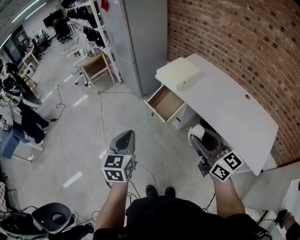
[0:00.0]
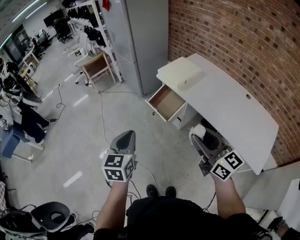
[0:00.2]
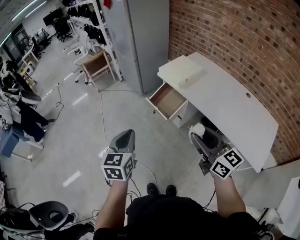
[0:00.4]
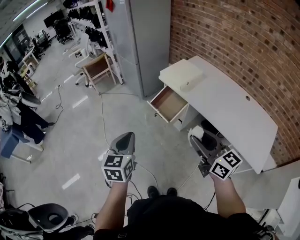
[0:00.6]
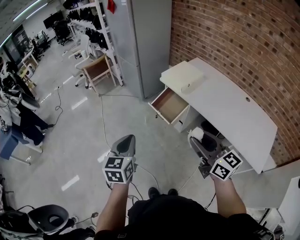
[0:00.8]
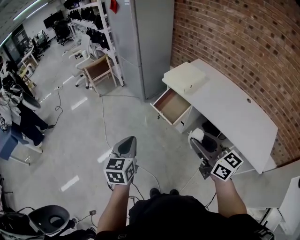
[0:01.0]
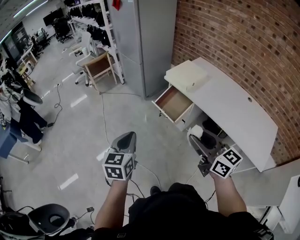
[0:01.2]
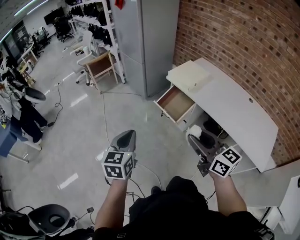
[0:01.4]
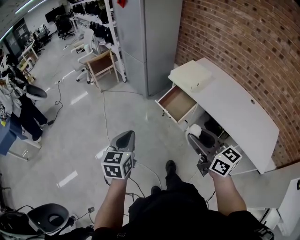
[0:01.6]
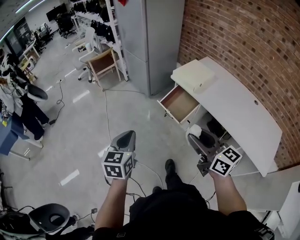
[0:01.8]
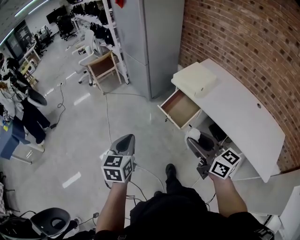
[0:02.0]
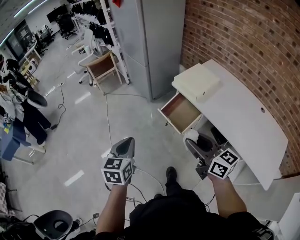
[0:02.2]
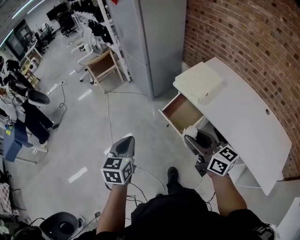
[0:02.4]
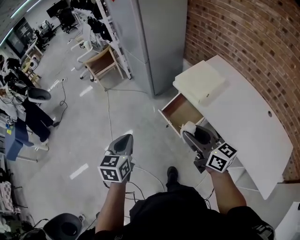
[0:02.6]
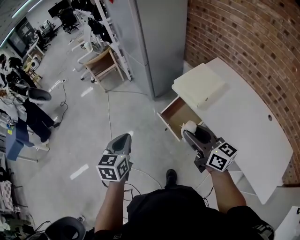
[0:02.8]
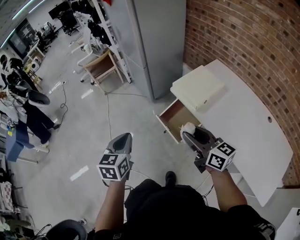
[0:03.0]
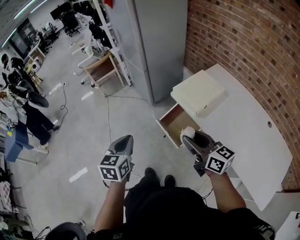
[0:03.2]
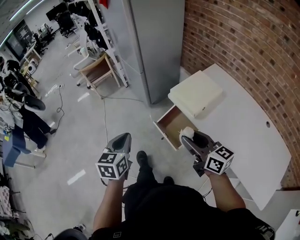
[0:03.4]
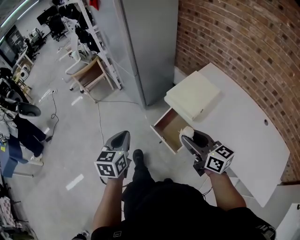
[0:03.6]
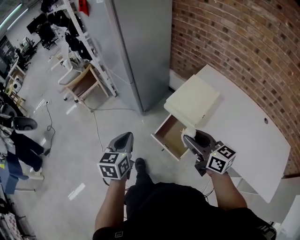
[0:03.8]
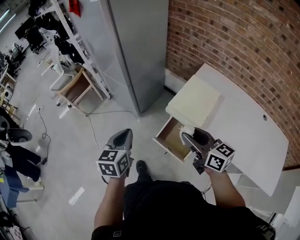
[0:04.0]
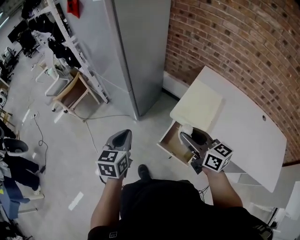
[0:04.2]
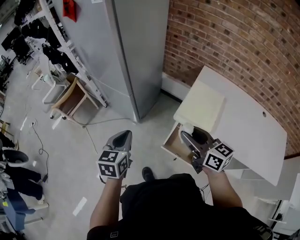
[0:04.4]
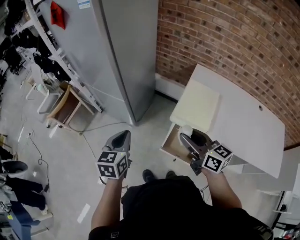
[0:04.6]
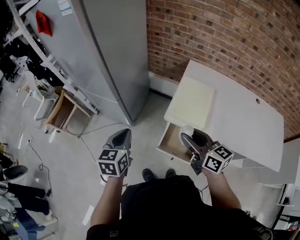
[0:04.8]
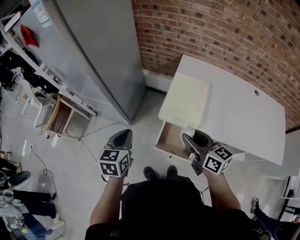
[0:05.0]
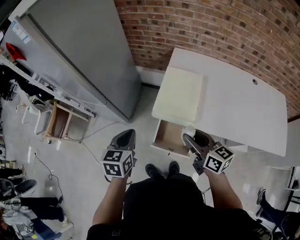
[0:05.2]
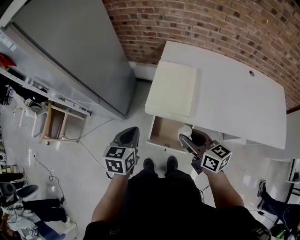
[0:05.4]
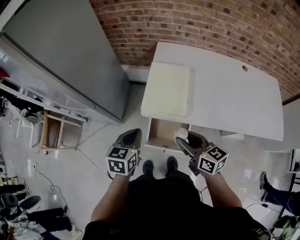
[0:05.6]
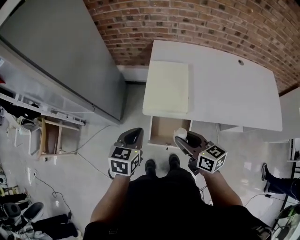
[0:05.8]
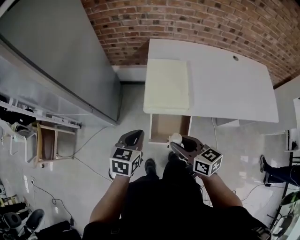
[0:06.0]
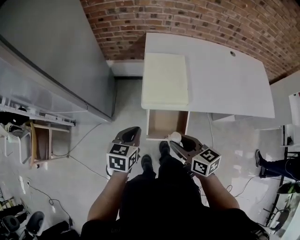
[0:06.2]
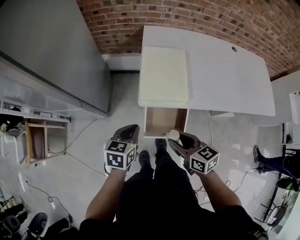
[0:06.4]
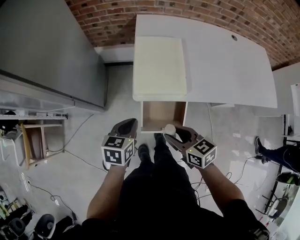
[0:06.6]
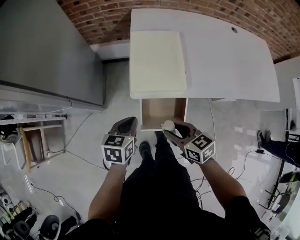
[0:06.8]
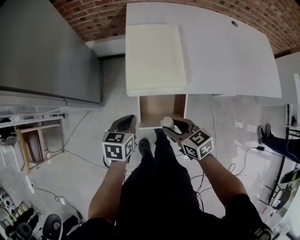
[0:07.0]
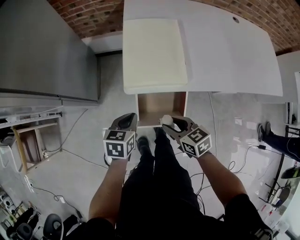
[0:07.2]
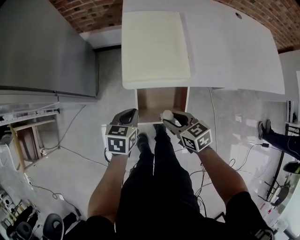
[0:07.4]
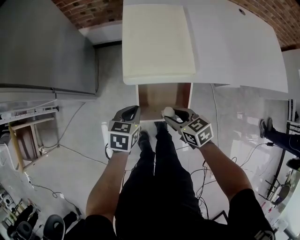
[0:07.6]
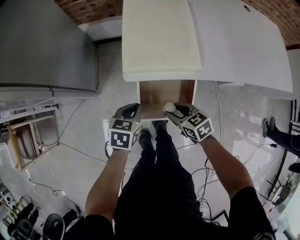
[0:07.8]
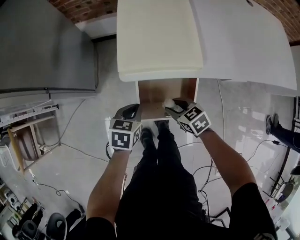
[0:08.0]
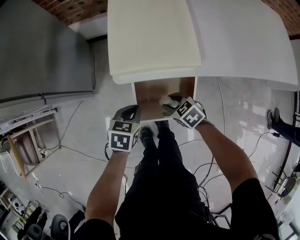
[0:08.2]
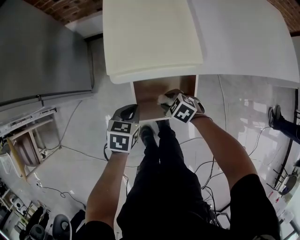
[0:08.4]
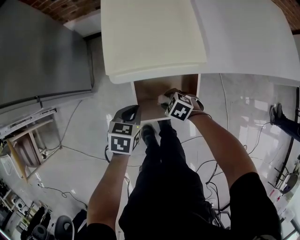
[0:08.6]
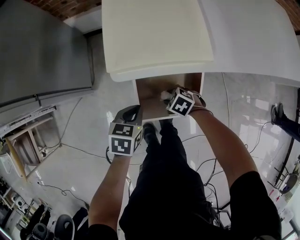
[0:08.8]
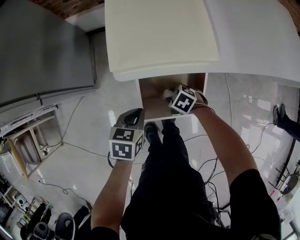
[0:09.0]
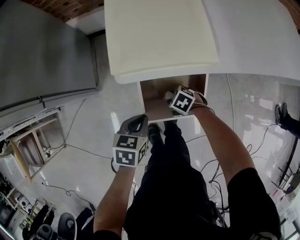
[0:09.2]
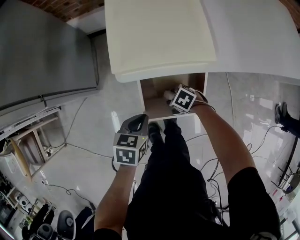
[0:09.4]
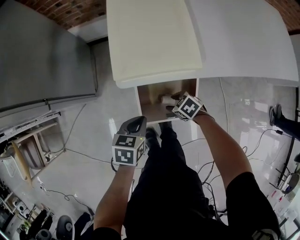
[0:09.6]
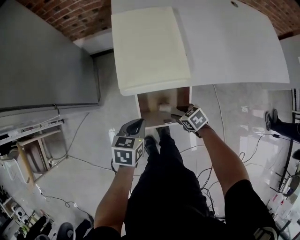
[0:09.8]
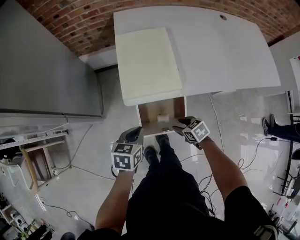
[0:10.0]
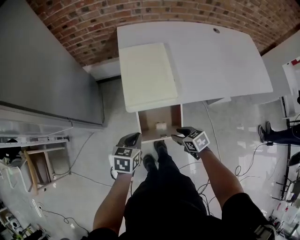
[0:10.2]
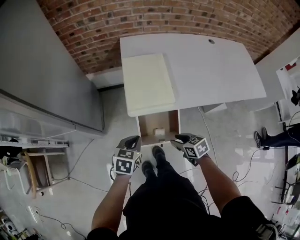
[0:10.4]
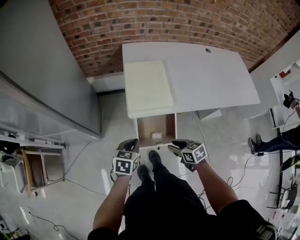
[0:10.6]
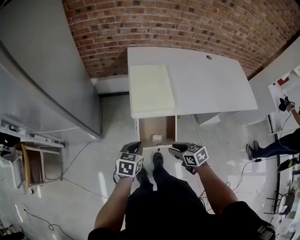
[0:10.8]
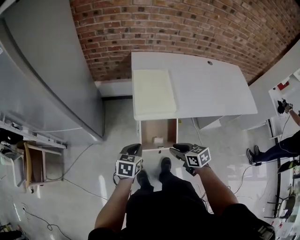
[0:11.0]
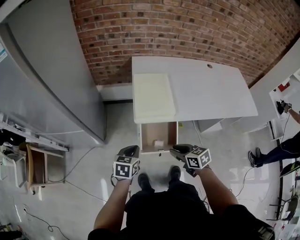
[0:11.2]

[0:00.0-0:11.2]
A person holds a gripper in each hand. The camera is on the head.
0:00.0 to 0:01.6: Both grippers travel together to the left, about 15 cm.
0:01.6 to 0:03.2: The grippers both shift forward and to the right by some 25 cm.
0:03.2 to 0:04.8: The right gripper ends up roughly 25 cm from where it was, and turns by approximately 30 degrees, while the left gripper changes place by about 35 cm, and rotates approximately 30 degrees.
0:04.8 to 0:06.4: The two grippers go approximately 15 cm downward. The left gripper turns by roughly 40 degrees, while the right gripper turns by approximately 20 degrees.
0:06.4 to 0:08.0: Both grippers travel together downward, roughly 25 cm. The right gripper changes its angle by about 20 degrees.
0:08.0 to 0:09.6: The right gripper travels downward by some 10 cm.
0:09.6 to 0:11.2: The right gripper goes about 35 cm upward, rotates roughly 30 degrees, and closes its fingers; the left gripper is displaced upward by approximately 20 cm.

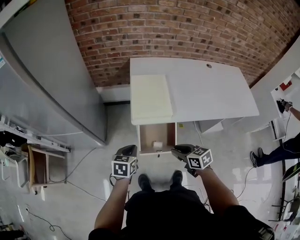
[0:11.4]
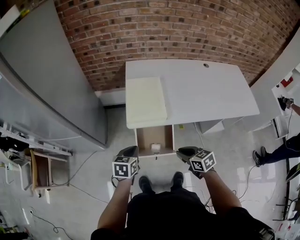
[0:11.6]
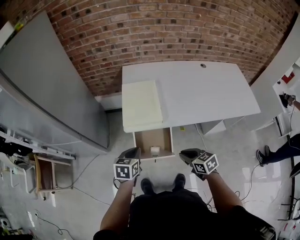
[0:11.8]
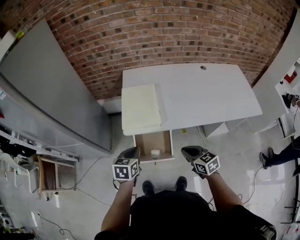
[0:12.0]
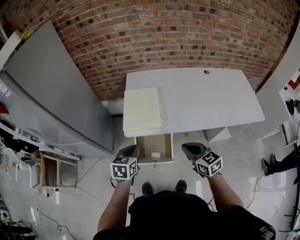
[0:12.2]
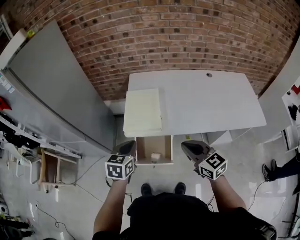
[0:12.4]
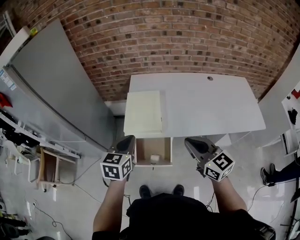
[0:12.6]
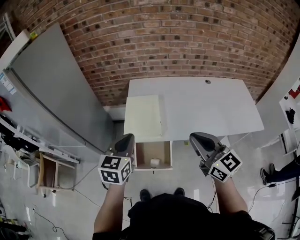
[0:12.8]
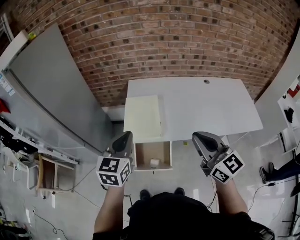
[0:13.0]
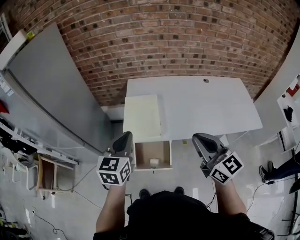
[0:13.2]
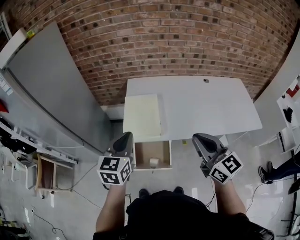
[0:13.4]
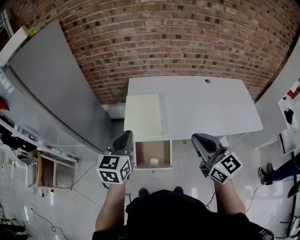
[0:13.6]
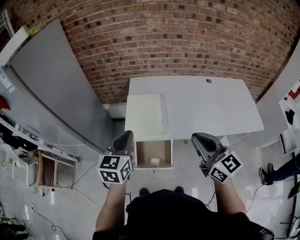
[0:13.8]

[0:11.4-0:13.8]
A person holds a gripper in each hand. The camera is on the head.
0:11.4 to 0:12.6: The two grippers go approximately 25 cm upward and to the right. The right gripper changes its angle by some 40 degrees, and closes its fingers.
0:12.6 to 0:13.8: Both grippers travel together upward, approximately 5 cm.

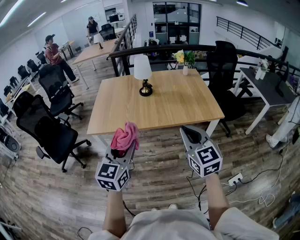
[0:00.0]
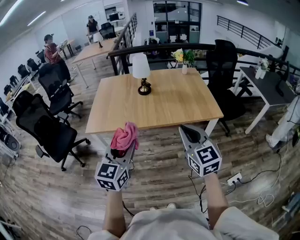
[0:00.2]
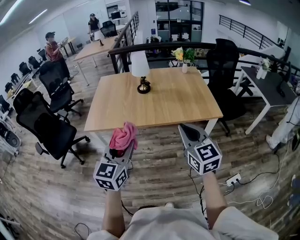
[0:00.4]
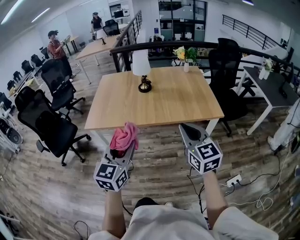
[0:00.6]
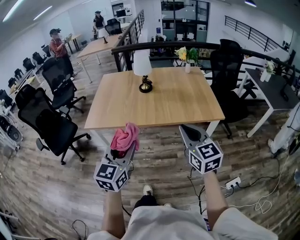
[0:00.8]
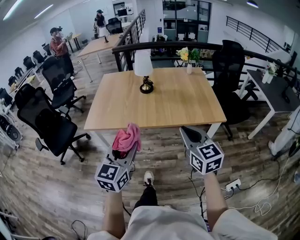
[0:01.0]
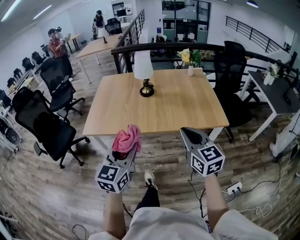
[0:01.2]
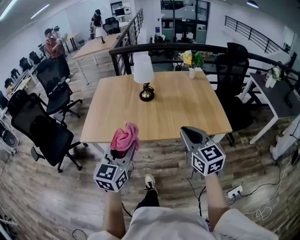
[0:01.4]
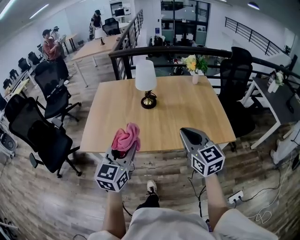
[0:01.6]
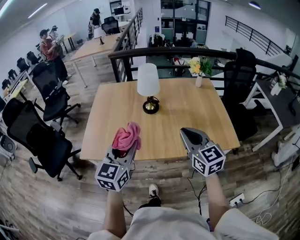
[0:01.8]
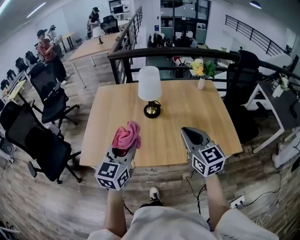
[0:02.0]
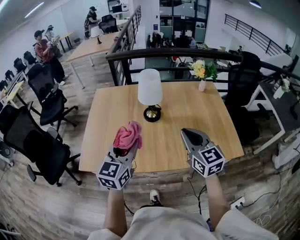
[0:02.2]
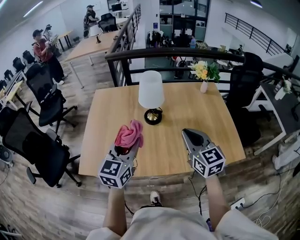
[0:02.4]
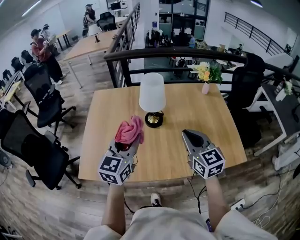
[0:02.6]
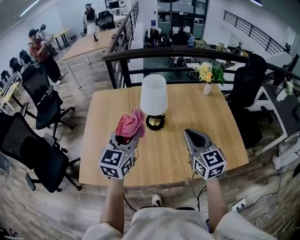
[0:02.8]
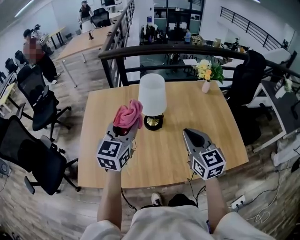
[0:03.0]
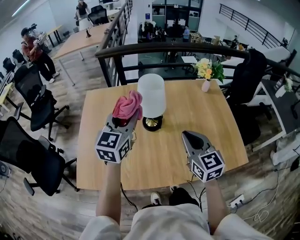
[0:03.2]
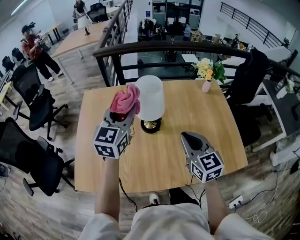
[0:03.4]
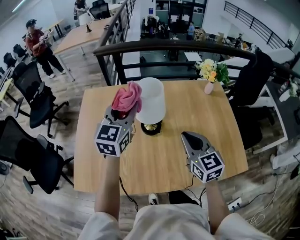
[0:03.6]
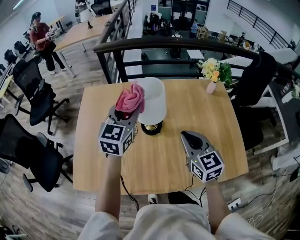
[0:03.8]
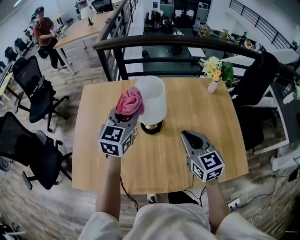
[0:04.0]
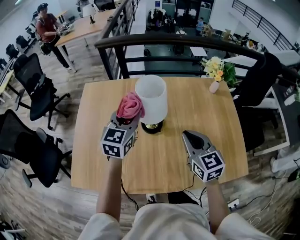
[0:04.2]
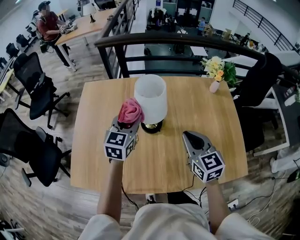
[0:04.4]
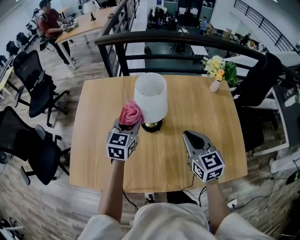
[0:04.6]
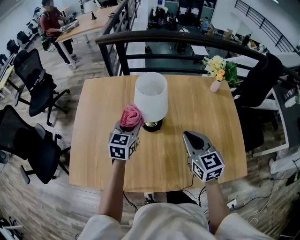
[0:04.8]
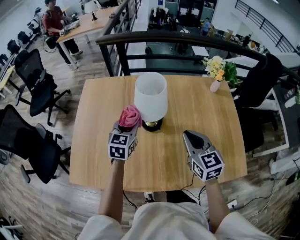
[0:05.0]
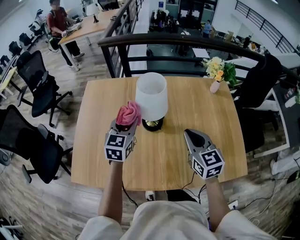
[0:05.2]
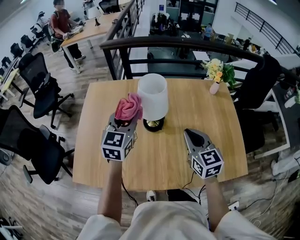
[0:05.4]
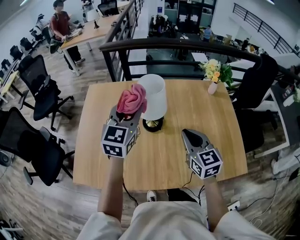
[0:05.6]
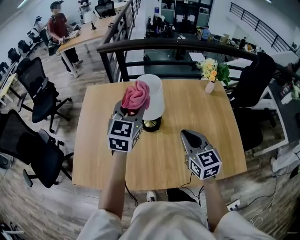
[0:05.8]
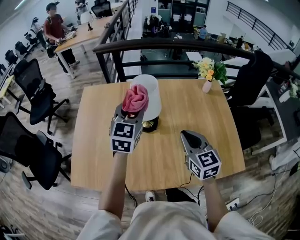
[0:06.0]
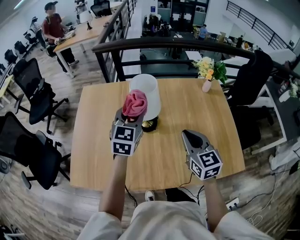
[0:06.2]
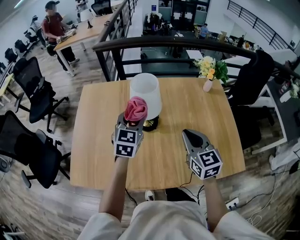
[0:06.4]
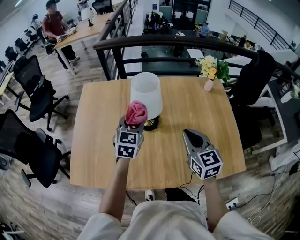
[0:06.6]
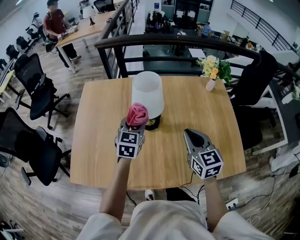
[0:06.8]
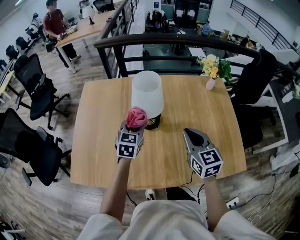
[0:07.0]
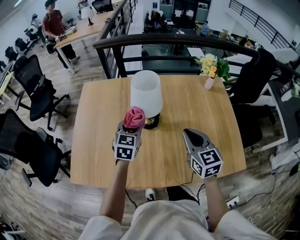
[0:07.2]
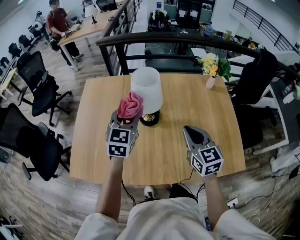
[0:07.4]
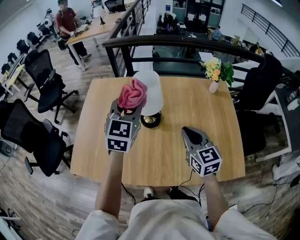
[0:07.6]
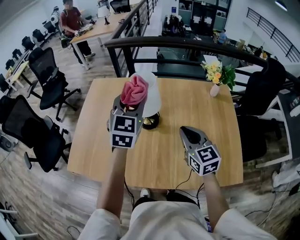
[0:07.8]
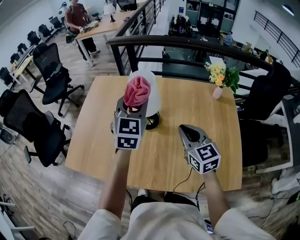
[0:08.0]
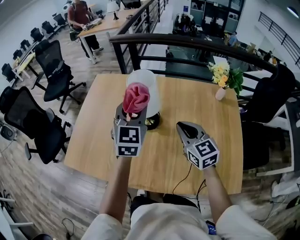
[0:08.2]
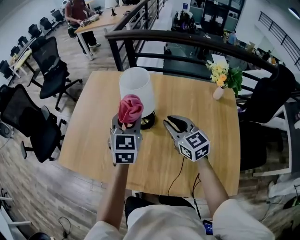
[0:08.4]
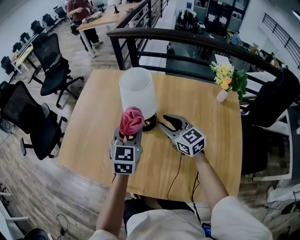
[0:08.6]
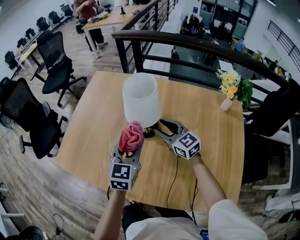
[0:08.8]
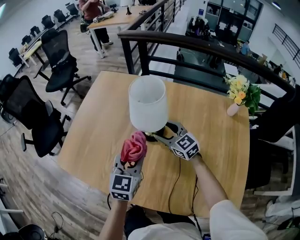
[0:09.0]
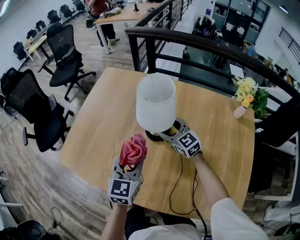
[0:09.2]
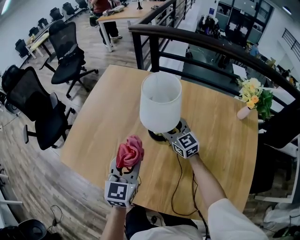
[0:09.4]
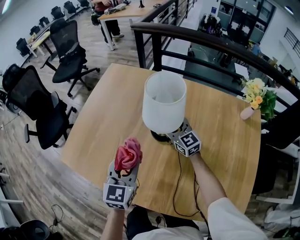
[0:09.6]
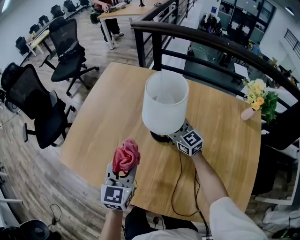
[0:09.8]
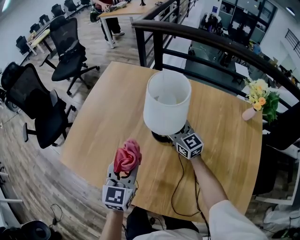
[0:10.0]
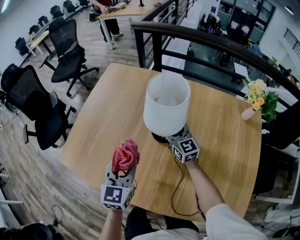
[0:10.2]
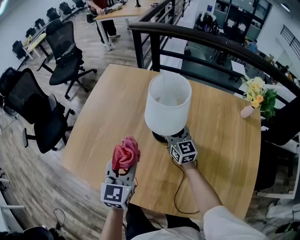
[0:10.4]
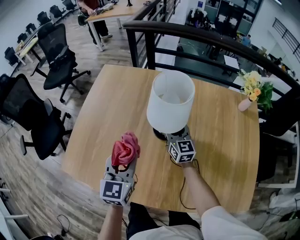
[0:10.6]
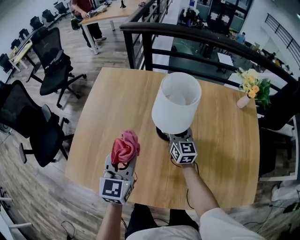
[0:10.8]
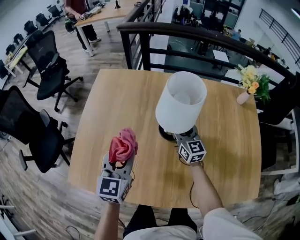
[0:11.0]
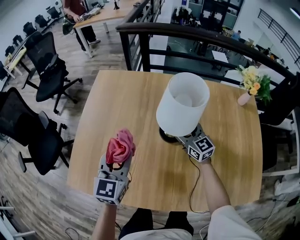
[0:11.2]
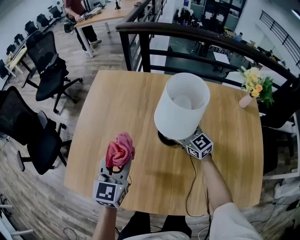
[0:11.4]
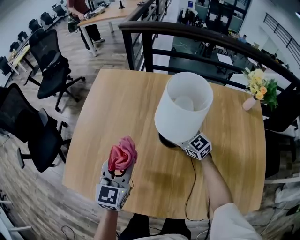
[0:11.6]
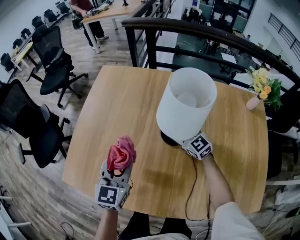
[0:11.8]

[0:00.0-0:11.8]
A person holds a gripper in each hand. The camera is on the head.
0:00.0 to 0:01.4: Both grippers move forward, roughly 15 cm.
0:01.4 to 0:03.0: The grippers both shift forward by approximately 35 cm.
0:03.0 to 0:04.4: The right gripper shifts roughly 10 cm forward and downward. Meanwhile the left gripper moves forward and downward, approximately 15 cm.
0:04.4 to 0:06.0: The left gripper travels upward by approximately 10 cm.
0:06.0 to 0:07.4: The left gripper reaches about 15 cm downward, then returns.
0:07.4 to 0:08.8: The left gripper travels downward by roughly 10 cm, while the right gripper shifts by approximately 20 cm, swivels about 40 degrees, and opens.
0:08.8 to 0:10.4: The right gripper heads forward and downward, covering roughly 10 cm, and changes its angle by approximately 20 degrees. Meanwhile the left gripper goes approximately 10 cm to the left.
0:10.4 to 0:11.8: The right gripper travels downward by some 5 cm, and changes its angle by some 20 degrees, while the left gripper goes roughly 5 cm to the left.
